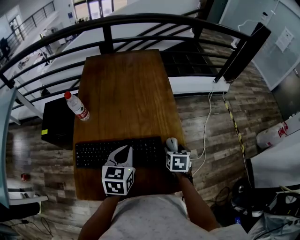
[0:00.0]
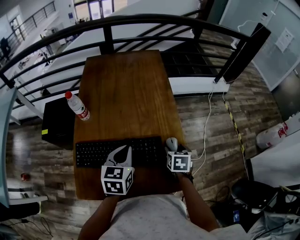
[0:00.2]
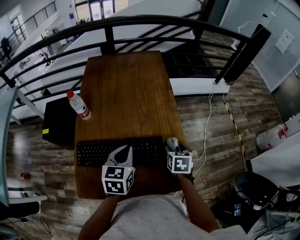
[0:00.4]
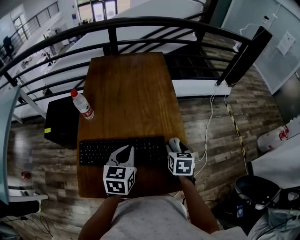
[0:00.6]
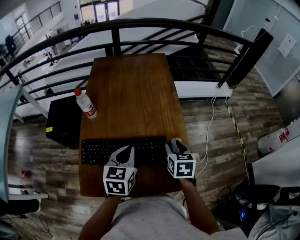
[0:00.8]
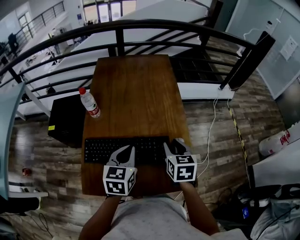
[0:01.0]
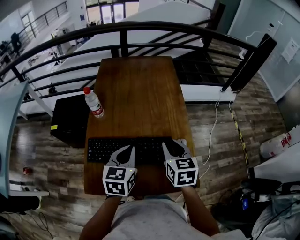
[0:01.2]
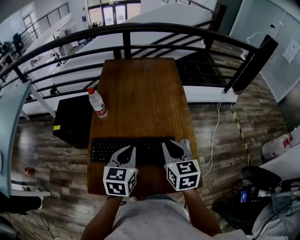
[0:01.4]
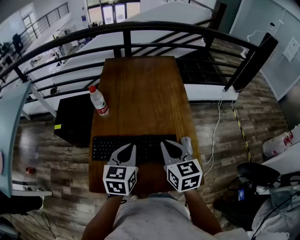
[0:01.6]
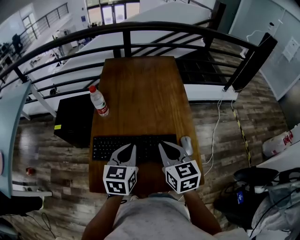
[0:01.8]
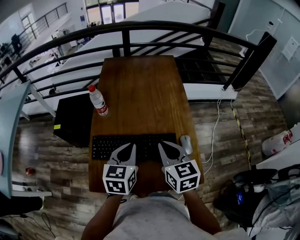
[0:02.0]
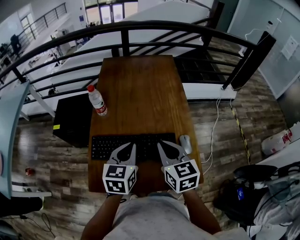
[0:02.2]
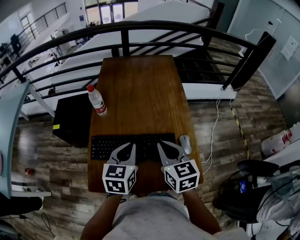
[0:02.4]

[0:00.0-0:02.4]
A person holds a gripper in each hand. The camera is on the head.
0:00.0 to 0:01.2: The right gripper moves upward and to the left, roughly 20 cm, rotates roughly 30 degrees, and closes. Meanwhile the left gripper ends up about 5 cm from where it was.
0:01.2 to 0:02.4: The right gripper moves to the left, approximately 5 cm, and closes its fingers.

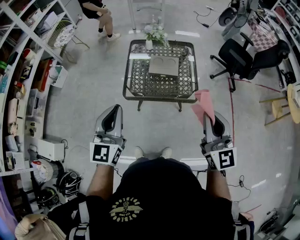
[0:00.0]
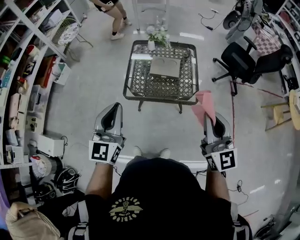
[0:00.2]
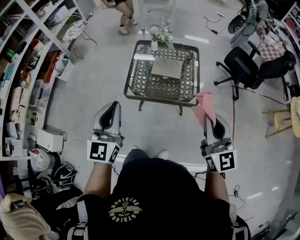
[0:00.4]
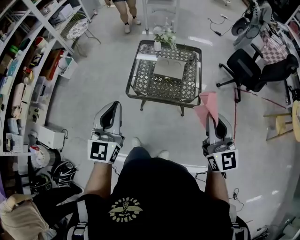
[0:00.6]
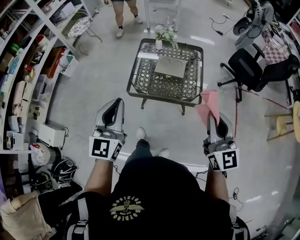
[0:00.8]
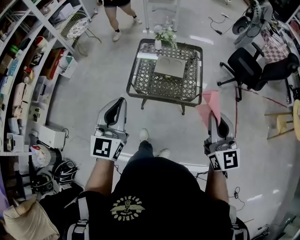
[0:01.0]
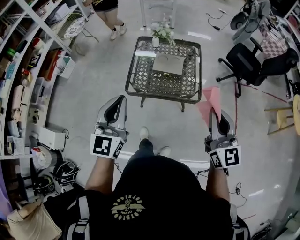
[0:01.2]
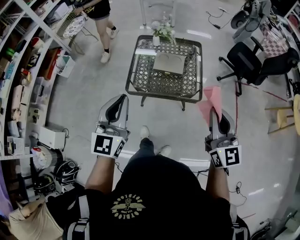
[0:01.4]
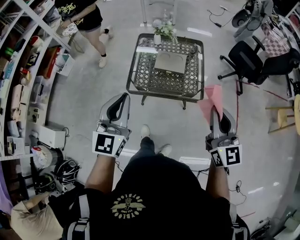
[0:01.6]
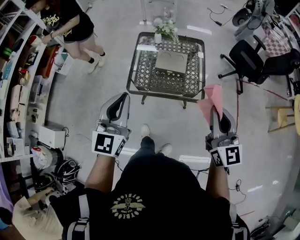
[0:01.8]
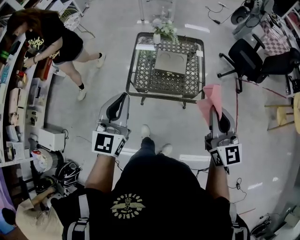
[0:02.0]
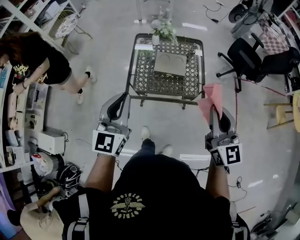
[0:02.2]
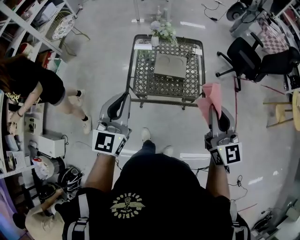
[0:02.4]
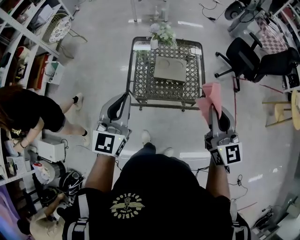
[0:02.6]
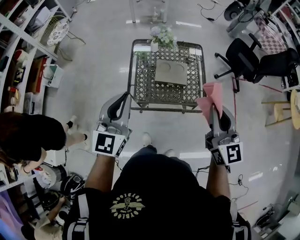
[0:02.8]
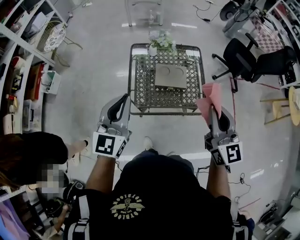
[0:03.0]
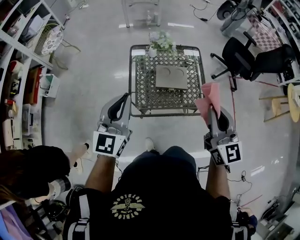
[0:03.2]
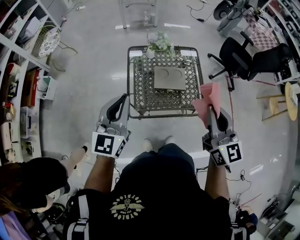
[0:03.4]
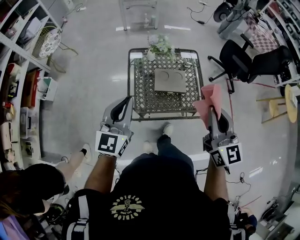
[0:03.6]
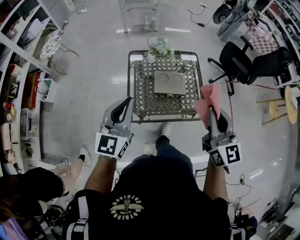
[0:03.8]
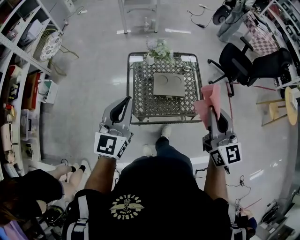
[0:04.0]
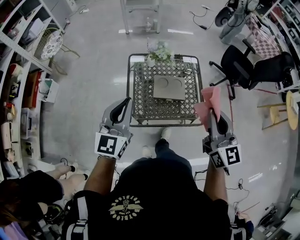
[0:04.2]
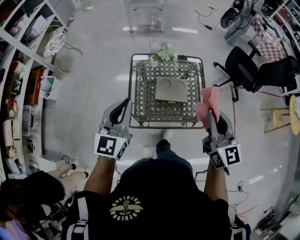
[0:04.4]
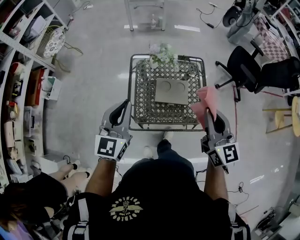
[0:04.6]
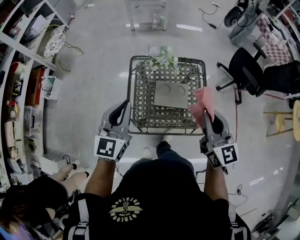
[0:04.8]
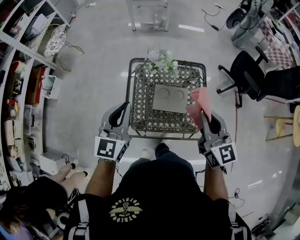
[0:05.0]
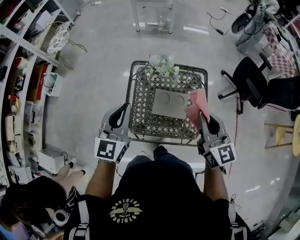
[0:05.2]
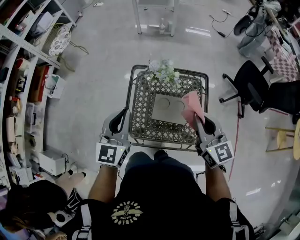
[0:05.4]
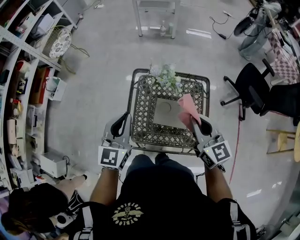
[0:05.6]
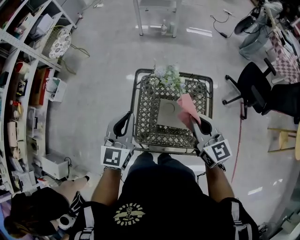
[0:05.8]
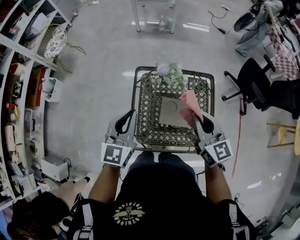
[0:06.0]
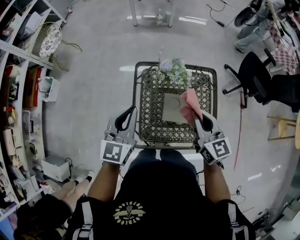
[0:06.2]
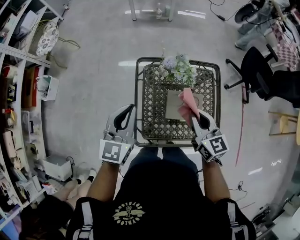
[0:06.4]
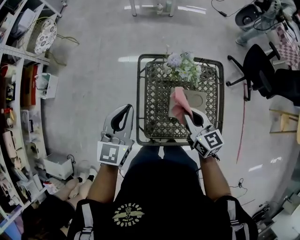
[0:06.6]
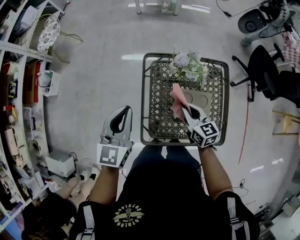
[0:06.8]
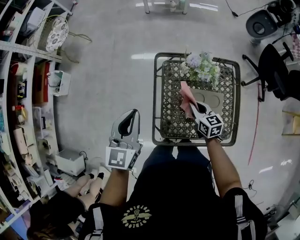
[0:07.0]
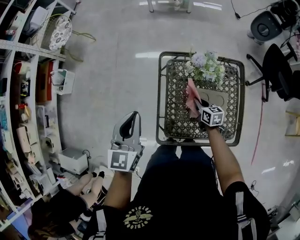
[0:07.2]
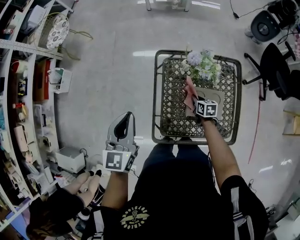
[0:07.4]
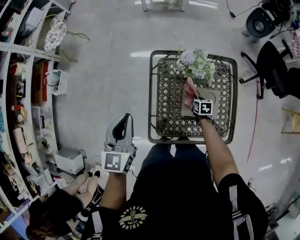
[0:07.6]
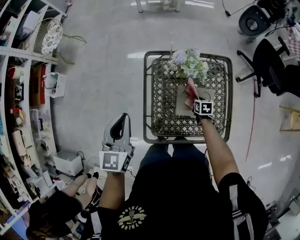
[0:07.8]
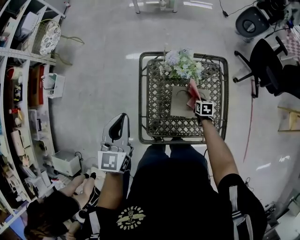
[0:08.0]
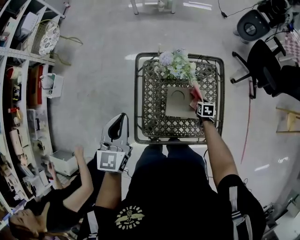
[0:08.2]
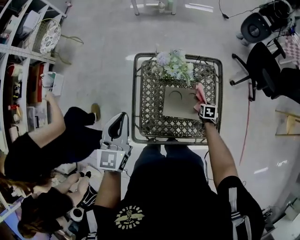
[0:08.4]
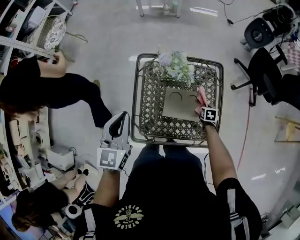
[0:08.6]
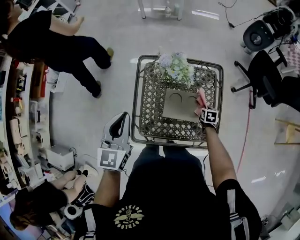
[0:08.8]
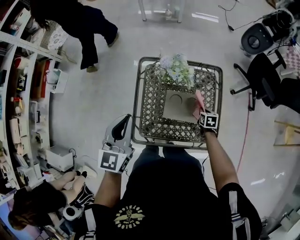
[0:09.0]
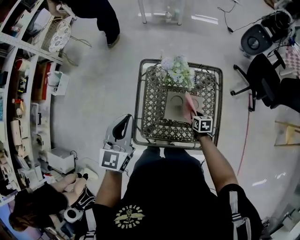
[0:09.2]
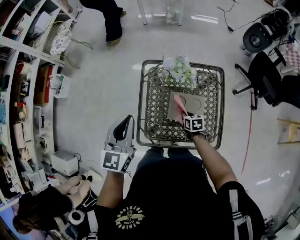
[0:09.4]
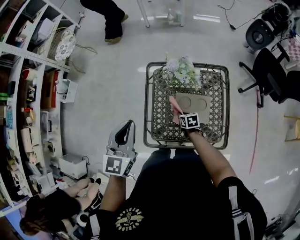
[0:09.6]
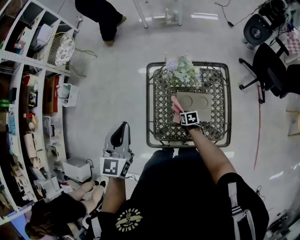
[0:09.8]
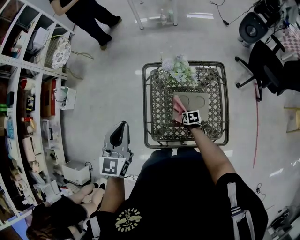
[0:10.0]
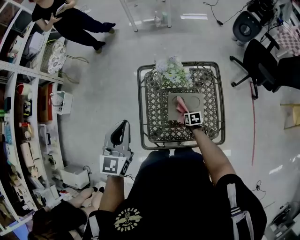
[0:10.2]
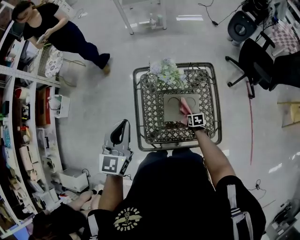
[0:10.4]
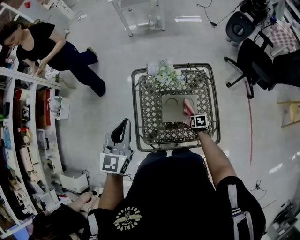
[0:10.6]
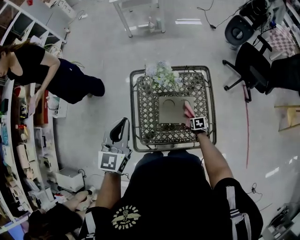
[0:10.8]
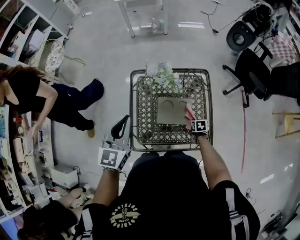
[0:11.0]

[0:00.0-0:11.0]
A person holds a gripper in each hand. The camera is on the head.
0:00.0 to 0:01.6: The grippers stay close to where they were, moving slightly.
0:01.6 to 0:03.2: The two grippers go approximately 20 cm forward and to the left.
0:03.2 to 0:04.8: The grippers both shift forward by roughly 15 cm.
0:04.8 to 0:06.2: The left gripper moves forward and downward, about 15 cm. The right gripper travels forward, downward and to the left by some 20 cm.
0:06.2 to 0:07.8: The left gripper shifts about 10 cm to the left, while the right gripper is displaced downward by some 40 cm, and points its fingers approximately 50 degrees further downward.
0:07.8 to 0:09.4: The right gripper goes roughly 10 cm upward and backward, and moves roughly 15 cm to the right and comes back, while the left gripper heads to the right and upward, covering approximately 10 cm.
0:09.4 to 0:11.0: The right gripper travels to the right and backward by some 20 cm; the left gripper goes some 5 cm to the right.

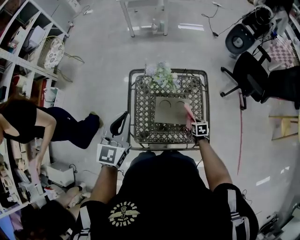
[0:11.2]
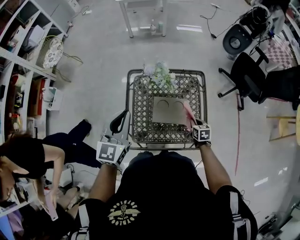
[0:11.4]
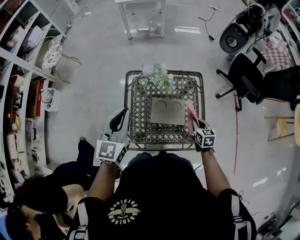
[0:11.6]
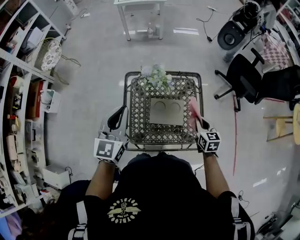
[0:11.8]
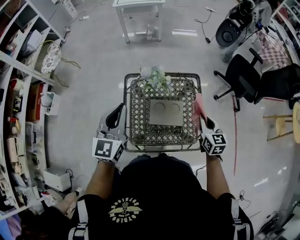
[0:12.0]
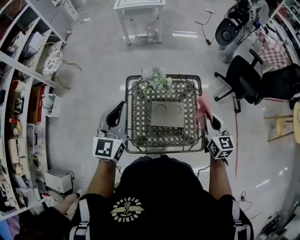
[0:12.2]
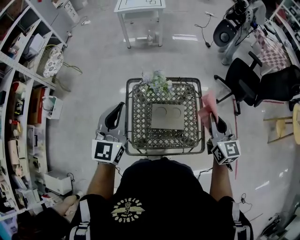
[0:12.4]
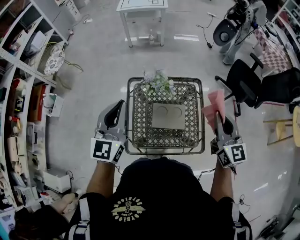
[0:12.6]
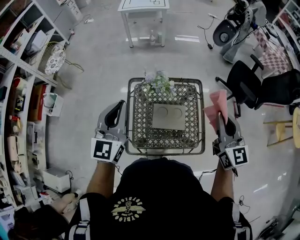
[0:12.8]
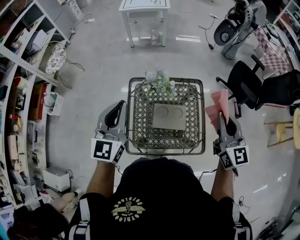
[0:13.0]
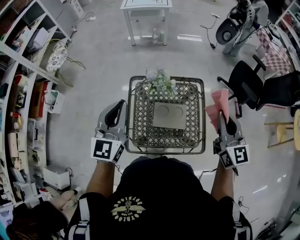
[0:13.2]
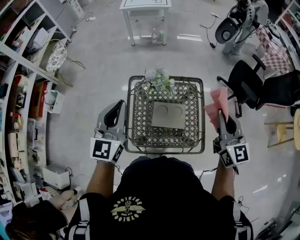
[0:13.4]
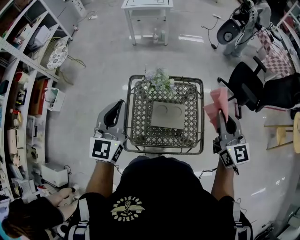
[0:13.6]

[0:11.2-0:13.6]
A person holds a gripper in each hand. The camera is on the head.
0:11.2 to 0:12.4: The right gripper moves upward, some 40 cm, and tilts its fingers roughly 50 degrees upward; the left gripper goes approximately 10 cm upward.
0:12.4 to 0:13.6: The right gripper heads upward, covering roughly 5 cm.

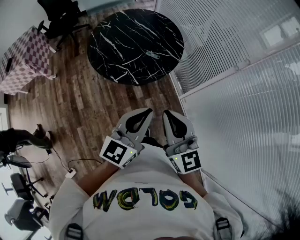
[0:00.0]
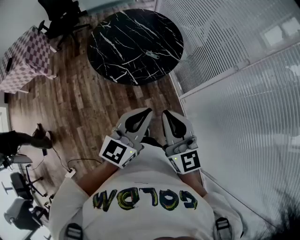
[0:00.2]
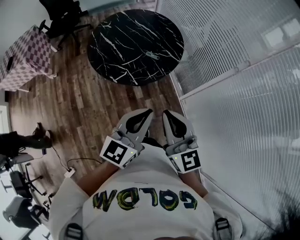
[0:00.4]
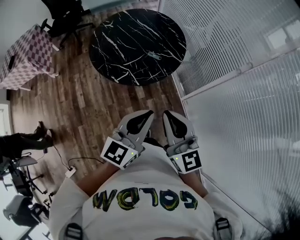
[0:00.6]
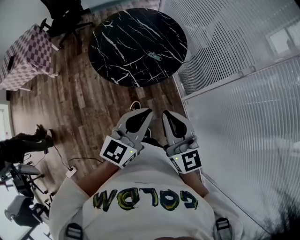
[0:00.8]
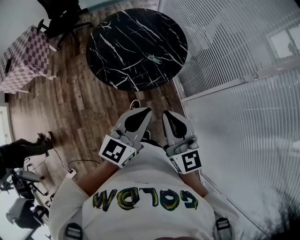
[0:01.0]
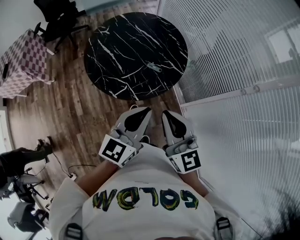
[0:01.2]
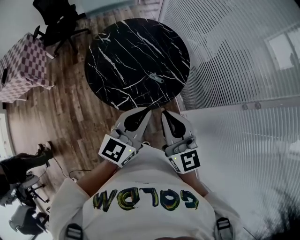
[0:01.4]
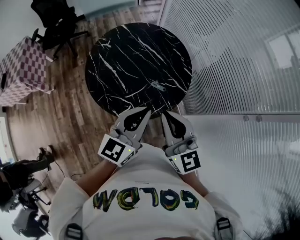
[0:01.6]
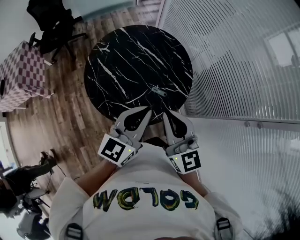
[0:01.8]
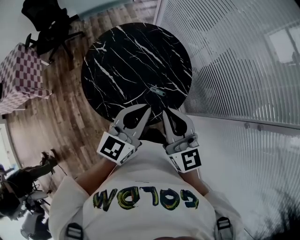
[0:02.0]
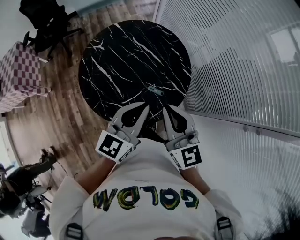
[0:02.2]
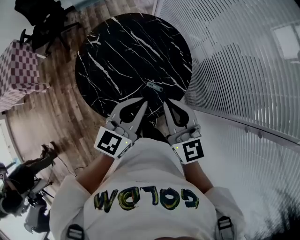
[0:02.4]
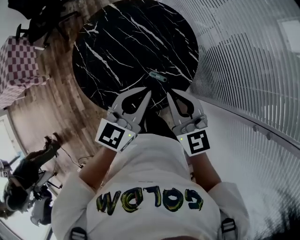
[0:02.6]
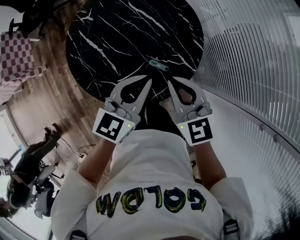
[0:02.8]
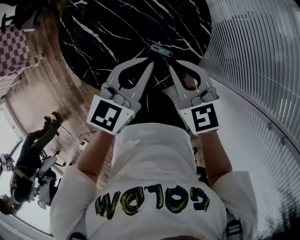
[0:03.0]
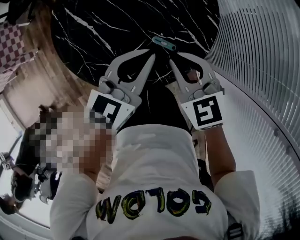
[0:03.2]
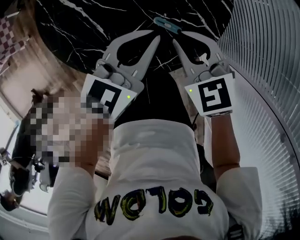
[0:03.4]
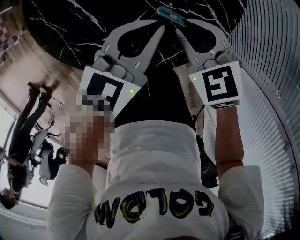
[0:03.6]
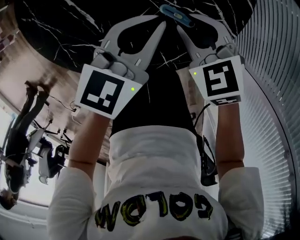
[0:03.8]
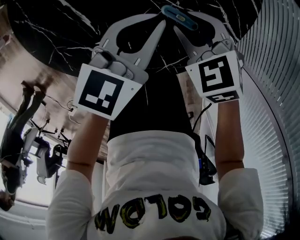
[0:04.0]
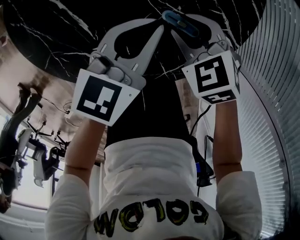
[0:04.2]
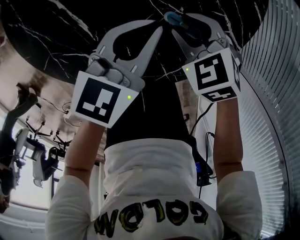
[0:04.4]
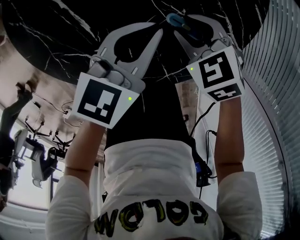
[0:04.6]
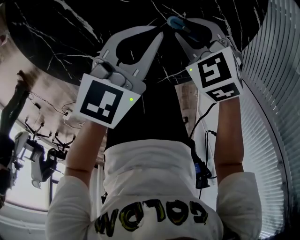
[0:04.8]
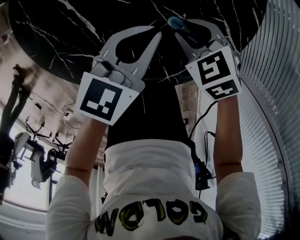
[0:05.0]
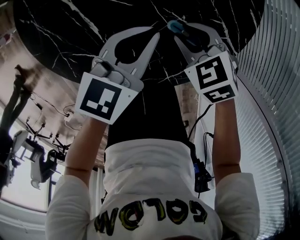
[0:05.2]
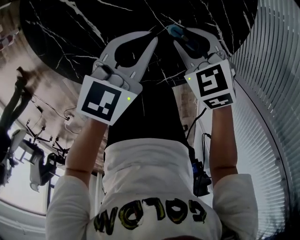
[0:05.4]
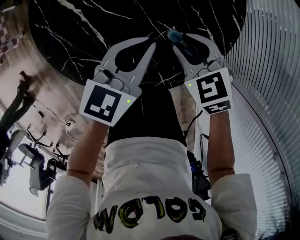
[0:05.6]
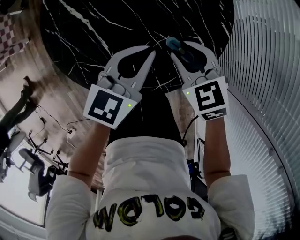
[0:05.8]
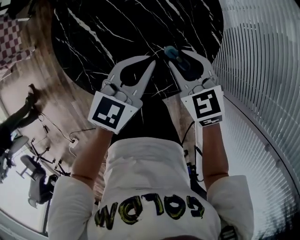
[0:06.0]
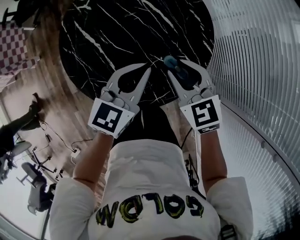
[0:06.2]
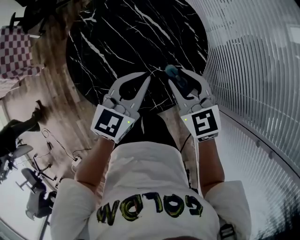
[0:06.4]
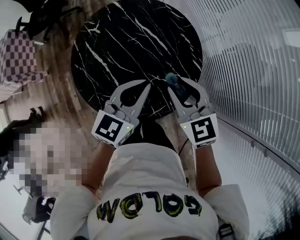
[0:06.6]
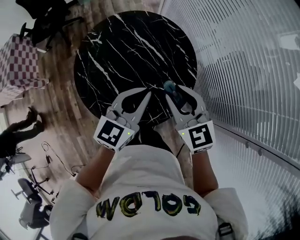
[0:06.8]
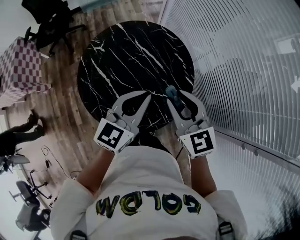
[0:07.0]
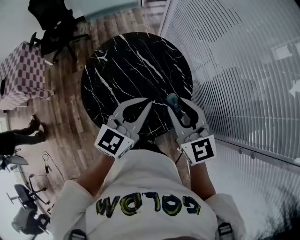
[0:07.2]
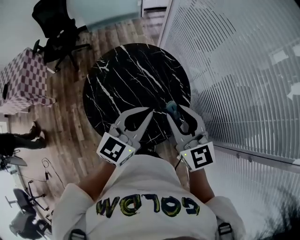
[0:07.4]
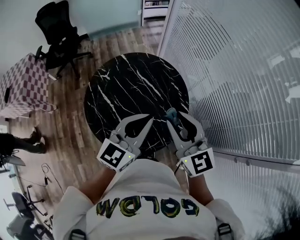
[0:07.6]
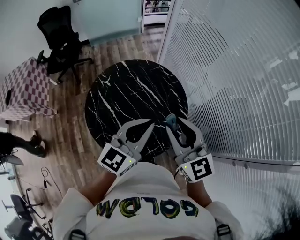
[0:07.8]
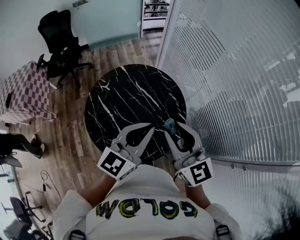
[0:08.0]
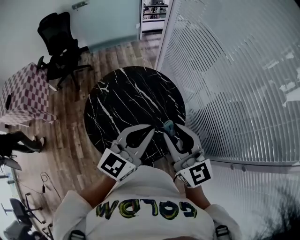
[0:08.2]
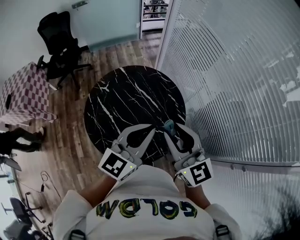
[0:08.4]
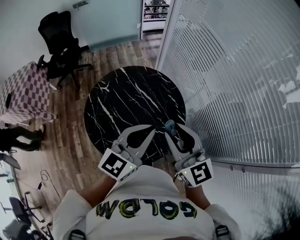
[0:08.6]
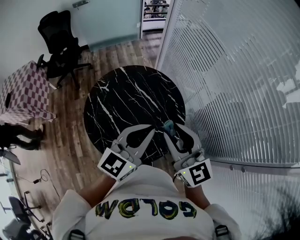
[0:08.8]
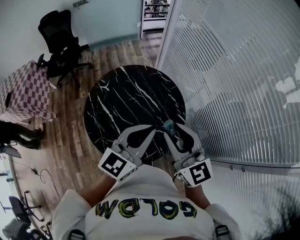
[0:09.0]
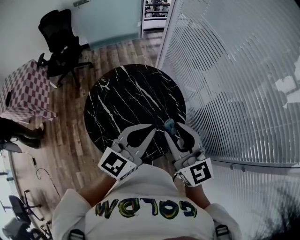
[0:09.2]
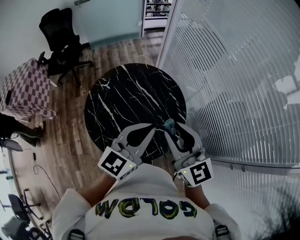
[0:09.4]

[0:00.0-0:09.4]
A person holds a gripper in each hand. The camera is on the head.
0:00.0 to 0:01.6: Both grippers move forward, roughly 25 cm.
0:01.6 to 0:03.2: The two grippers go approximately 30 cm downward and forward. The right gripper angles its fingers downward, by approximately 40 degrees.
0:03.2 to 0:04.8: Both grippers move downward, about 20 cm. The right gripper swivels approximately 30 degrees, and opens.
0:04.8 to 0:06.2: The grippers both shift upward by some 20 cm. The right gripper changes its angle by about 30 degrees.
0:06.2 to 0:07.8: The two grippers go about 25 cm upward. The right gripper angles its fingers upward, by approximately 30 degrees.
0:07.8 to 0:09.4: The grippers move only a little.
